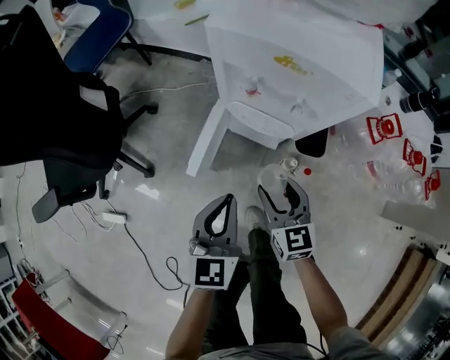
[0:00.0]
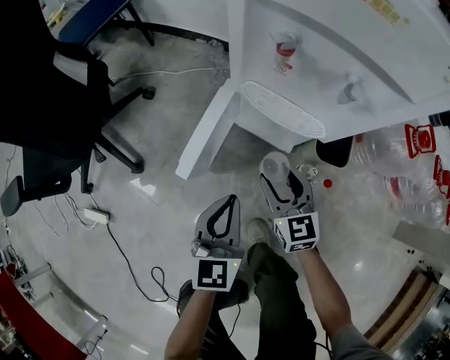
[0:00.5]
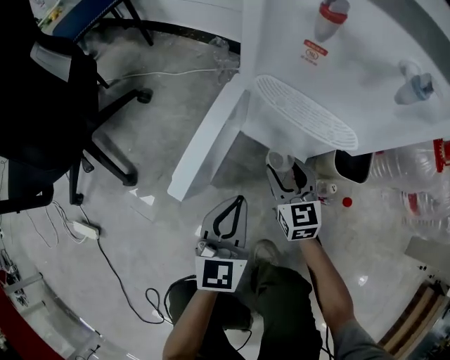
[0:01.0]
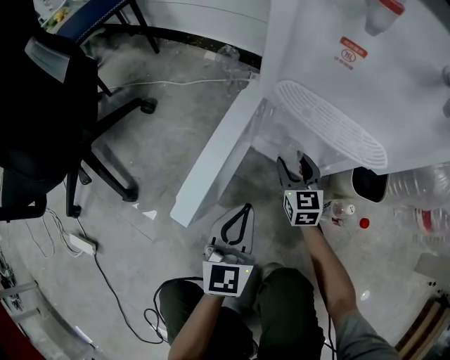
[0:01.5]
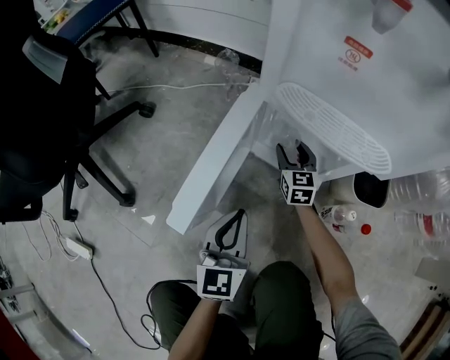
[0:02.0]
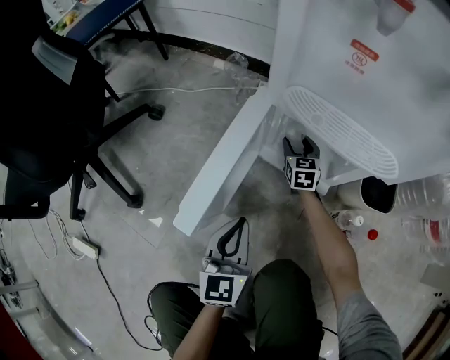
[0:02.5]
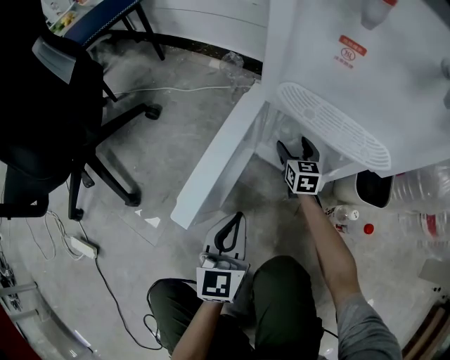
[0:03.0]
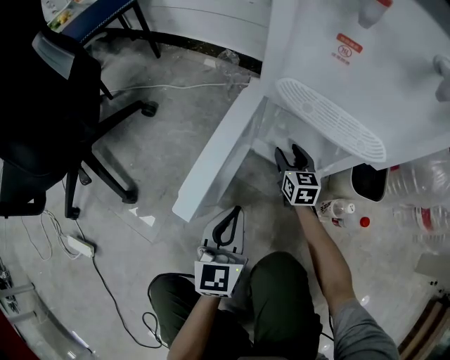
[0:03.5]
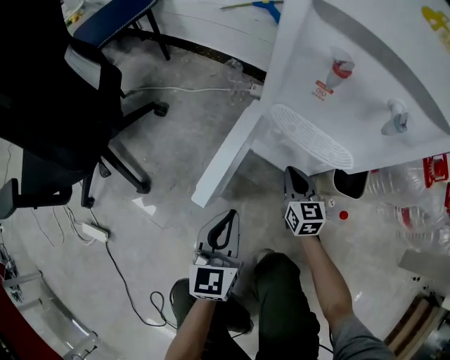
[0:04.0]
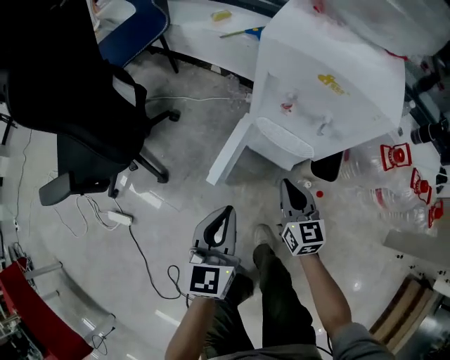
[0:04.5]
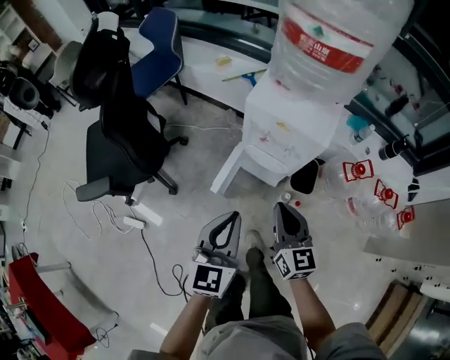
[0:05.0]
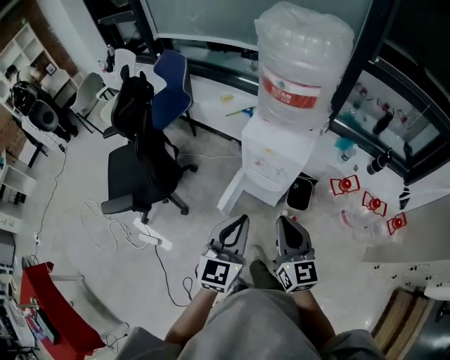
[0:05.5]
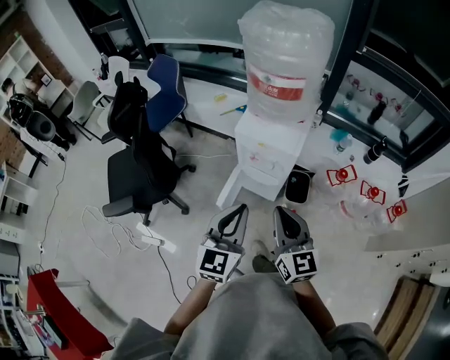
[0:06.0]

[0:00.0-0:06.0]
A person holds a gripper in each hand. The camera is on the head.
0:00.0 to 0:02.0: The left gripper goes approximately 40 cm downward, while the right gripper travels downward and forward by about 50 cm.
0:02.0 to 0:04.0: The left gripper shifts some 15 cm upward. The right gripper travels upward and backward by roughly 20 cm, and closes up.
0:04.0 to 0:06.0: Both grippers travel together upward, some 70 cm. The left gripper turns by approximately 20 degrees.

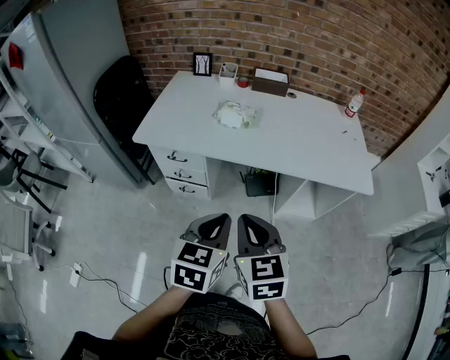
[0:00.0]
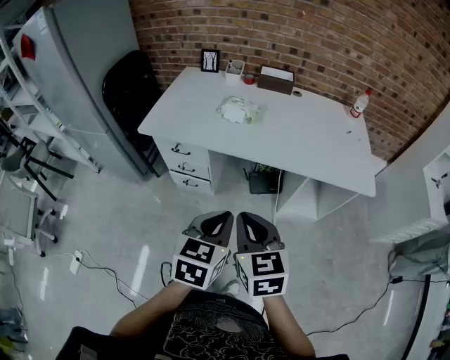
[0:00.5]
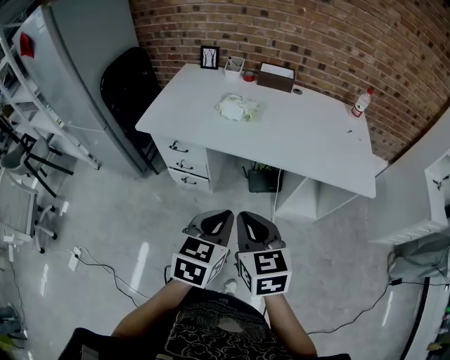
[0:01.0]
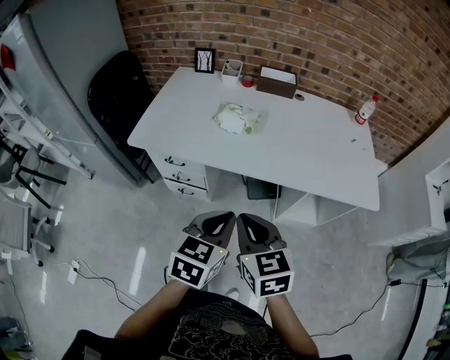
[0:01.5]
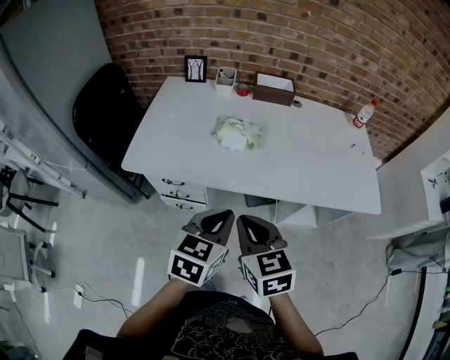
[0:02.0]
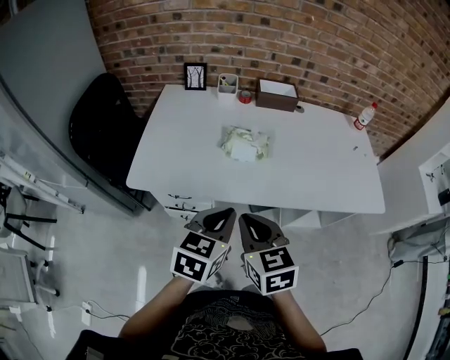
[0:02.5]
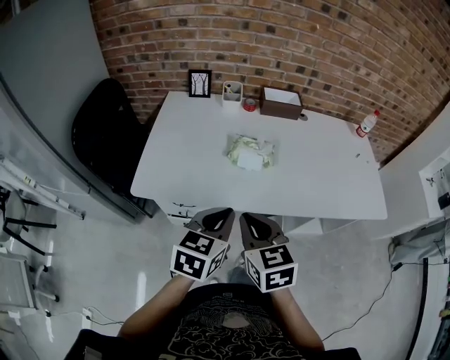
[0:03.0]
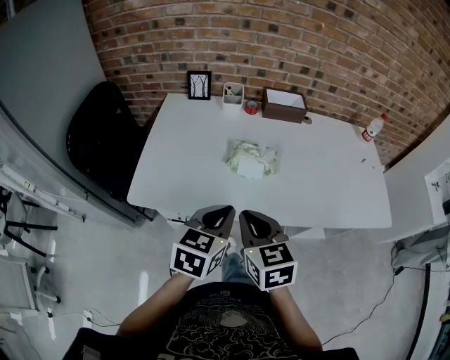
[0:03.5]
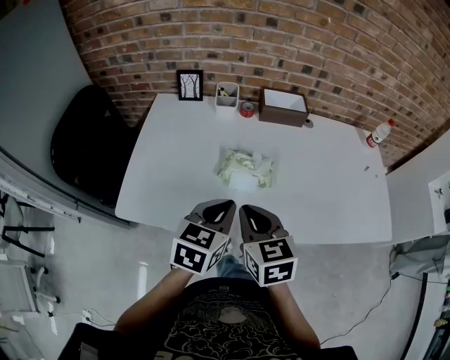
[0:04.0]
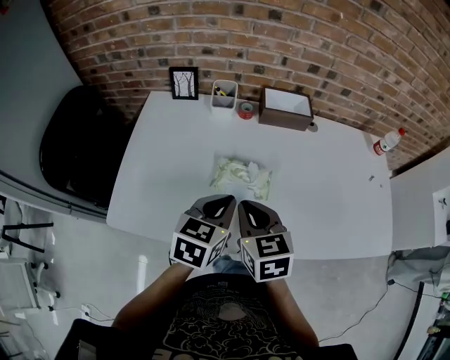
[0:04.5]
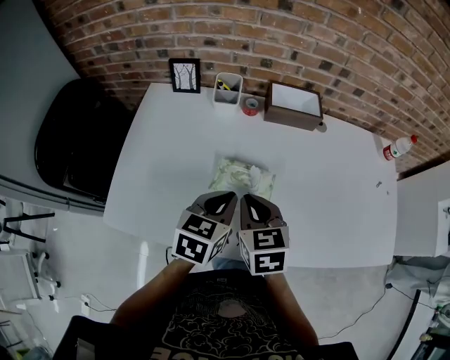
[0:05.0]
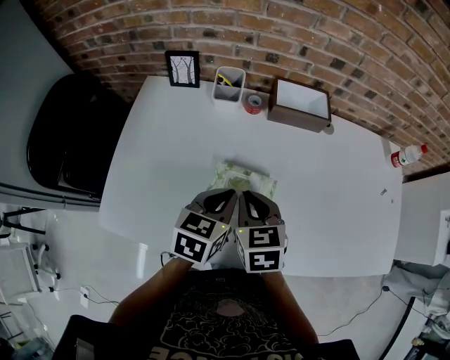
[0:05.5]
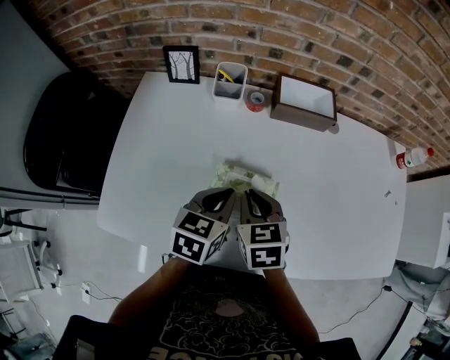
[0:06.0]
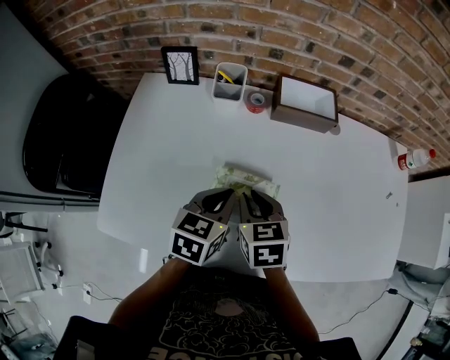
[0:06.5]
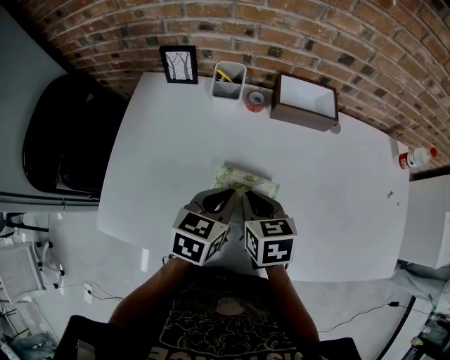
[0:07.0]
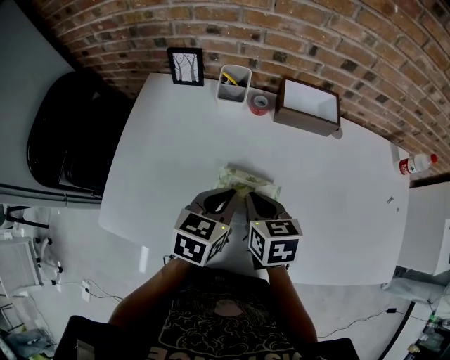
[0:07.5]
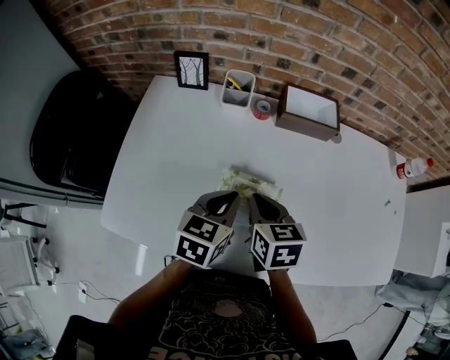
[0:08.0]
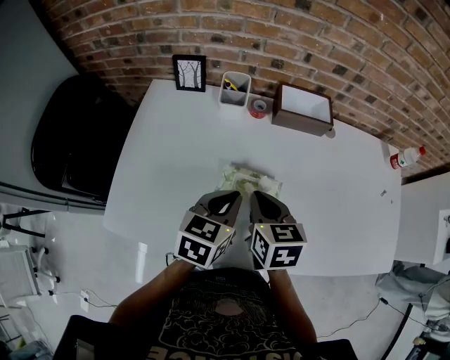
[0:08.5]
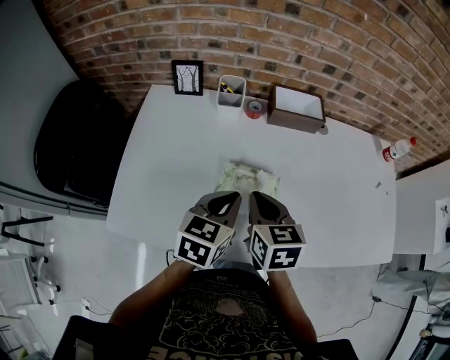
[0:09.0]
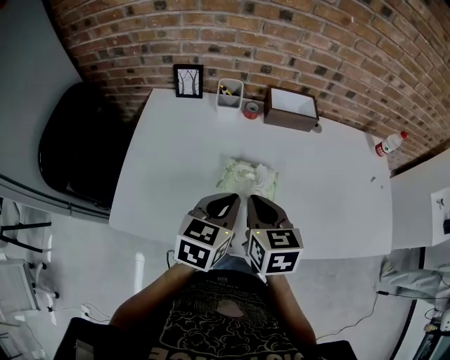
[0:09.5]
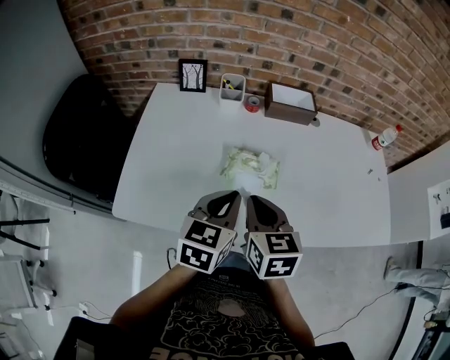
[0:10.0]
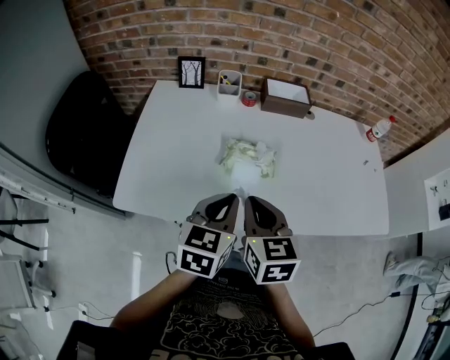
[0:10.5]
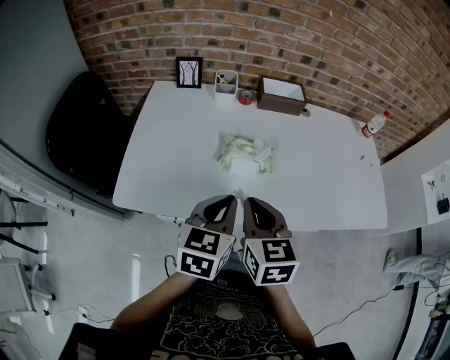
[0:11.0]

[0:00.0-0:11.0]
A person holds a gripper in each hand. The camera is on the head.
0:00.0 to 0:02.0: The two grippers go approximately 15 cm forward.
0:02.0 to 0:03.5: Both grippers travel together forward and to the left, approximately 15 cm.
0:03.5 to 0:05.5: Both grippers move forward, approximately 25 cm.
0:05.5 to 0:07.5: The grippers move only a little.
0:07.5 to 0:09.0: The right gripper shifts some 5 cm upward; the left gripper moves roughly 5 cm.
0:09.0 to 0:11.0: Both grippers travel together backward, some 15 cm.

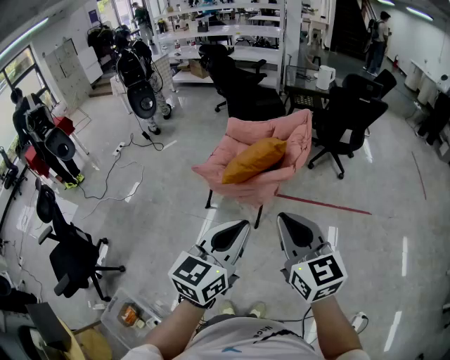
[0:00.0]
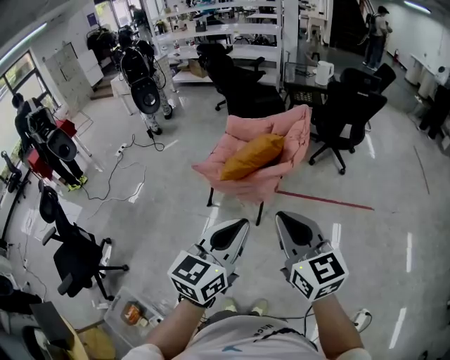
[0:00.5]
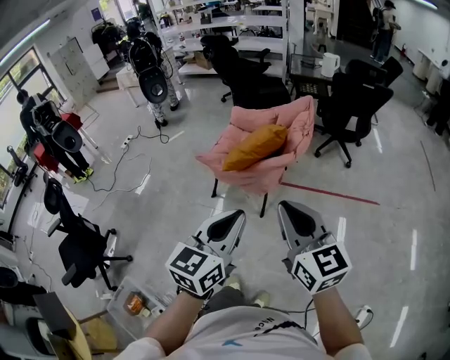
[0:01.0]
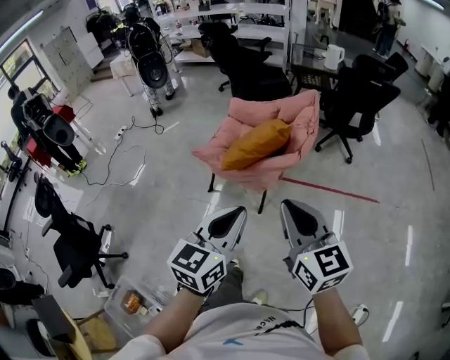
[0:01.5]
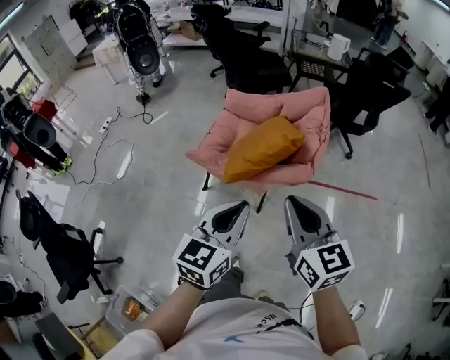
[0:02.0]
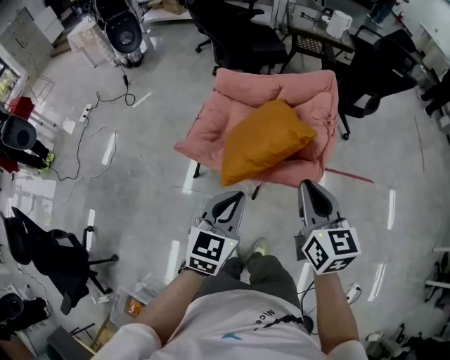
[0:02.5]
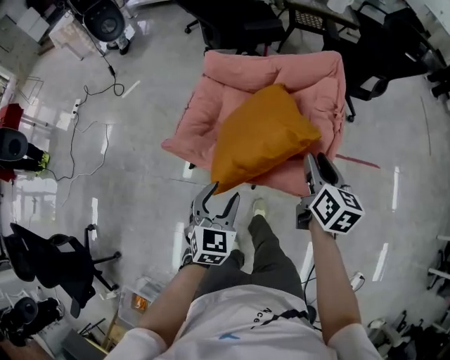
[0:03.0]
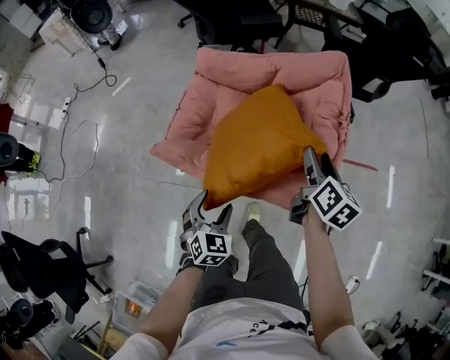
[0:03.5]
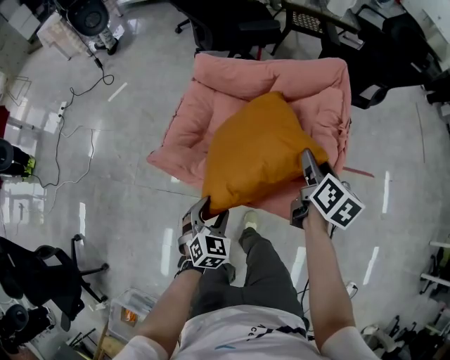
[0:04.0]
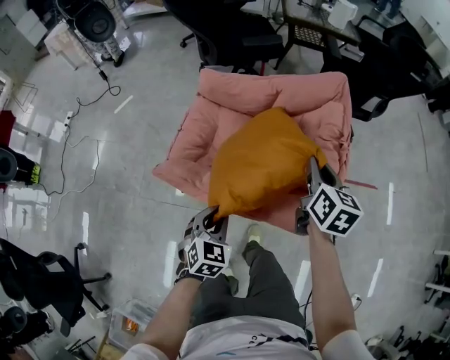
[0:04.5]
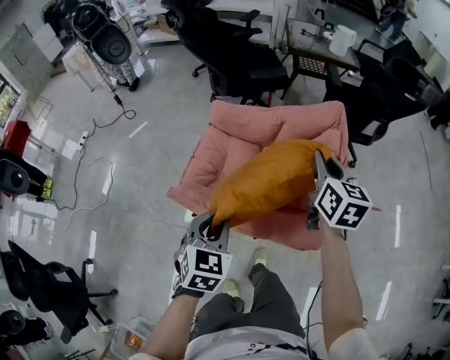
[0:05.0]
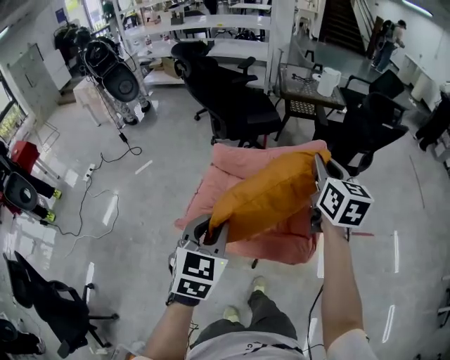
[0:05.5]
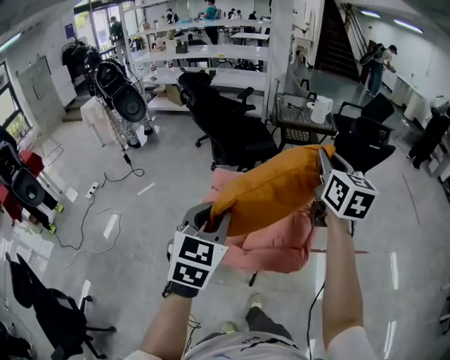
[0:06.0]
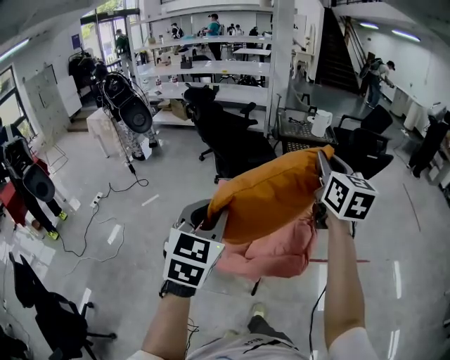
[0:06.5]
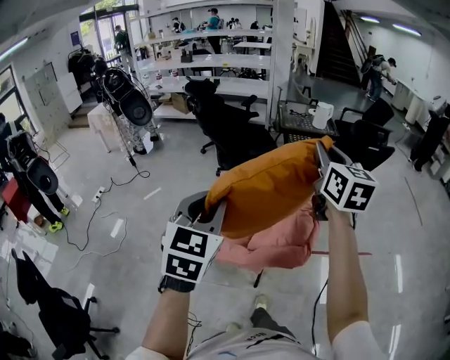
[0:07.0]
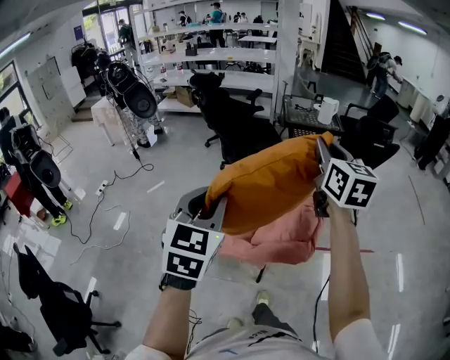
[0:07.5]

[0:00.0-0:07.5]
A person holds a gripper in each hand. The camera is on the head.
0:00.0 to 0:02.0: The right gripper heads forward, covering some 20 cm; the left gripper is displaced forward and downward by approximately 20 cm.
0:02.0 to 0:04.0: The right gripper travels forward and downward by approximately 40 cm, rotates approximately 50 degrees, and opens its fingers. The left gripper is displaced downward and forward by some 40 cm, tilts its fingers approximately 30 degrees downward, and opens.
0:04.0 to 0:05.5: The grippers both shift upward by some 30 cm. The left gripper closes its fingers, while the right gripper changes its angle by some 30 degrees, and closes up.
0:05.5 to 0:07.5: Both grippers move upward and backward, roughly 15 cm.

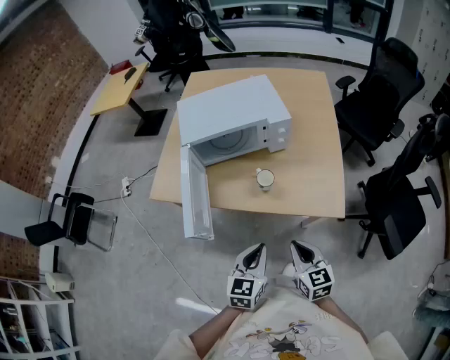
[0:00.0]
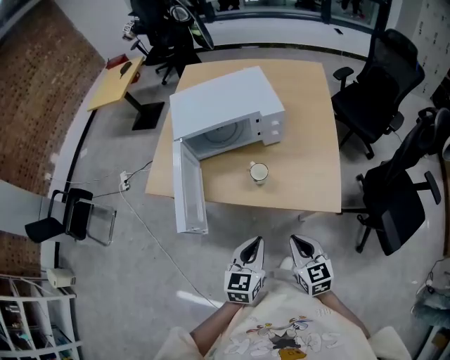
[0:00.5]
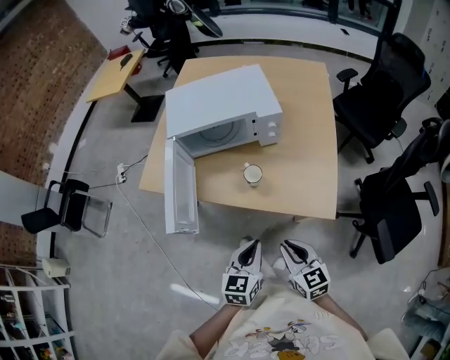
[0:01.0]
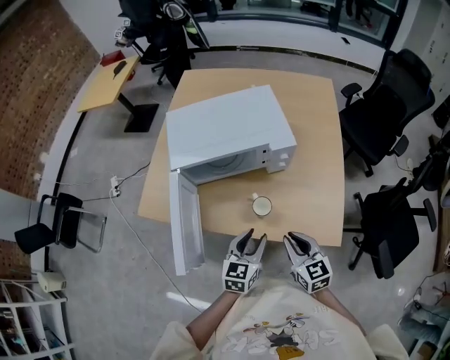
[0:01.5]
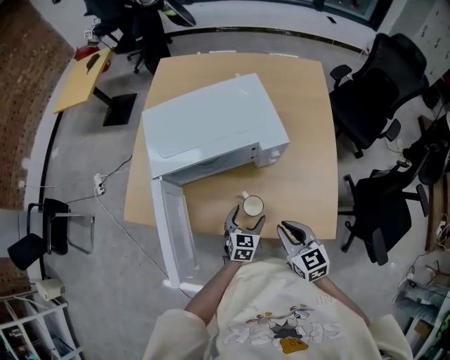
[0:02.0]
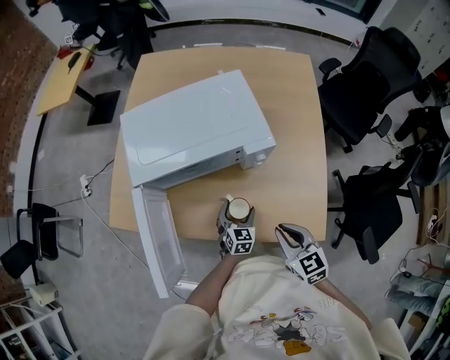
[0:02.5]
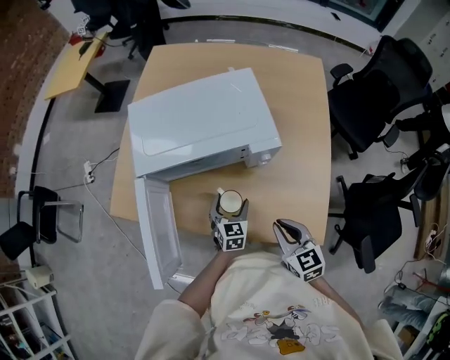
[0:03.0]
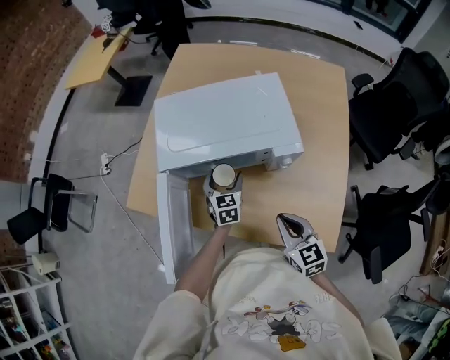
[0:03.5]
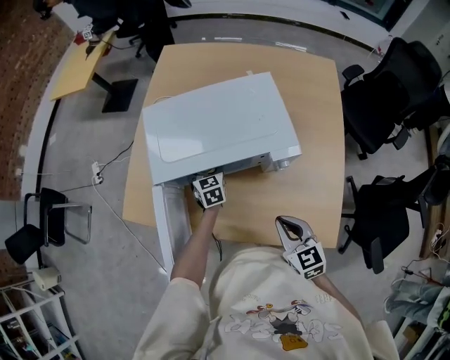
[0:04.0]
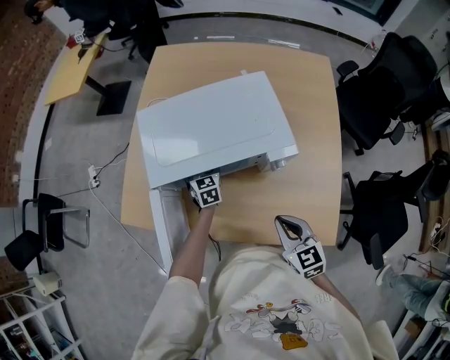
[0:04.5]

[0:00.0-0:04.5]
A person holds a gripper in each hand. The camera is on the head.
0:00.0 to 0:02.0: The left gripper shifts about 30 cm forward and downward, and opens up, while the right gripper goes about 20 cm forward.
0:02.0 to 0:04.5: The right gripper is displaced forward by approximately 5 cm, while the left gripper heads forward, covering about 25 cm, and turns by about 30 degrees.
